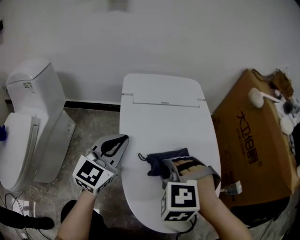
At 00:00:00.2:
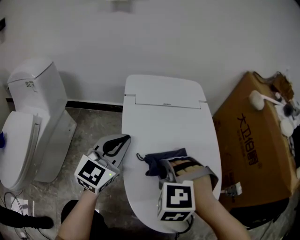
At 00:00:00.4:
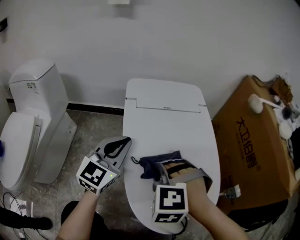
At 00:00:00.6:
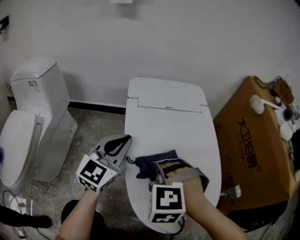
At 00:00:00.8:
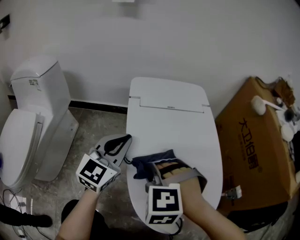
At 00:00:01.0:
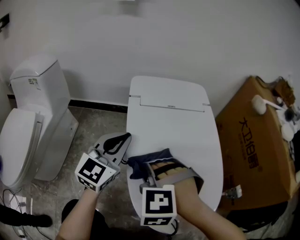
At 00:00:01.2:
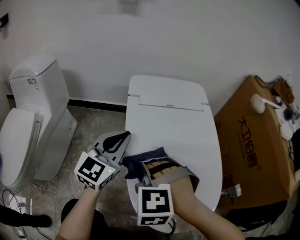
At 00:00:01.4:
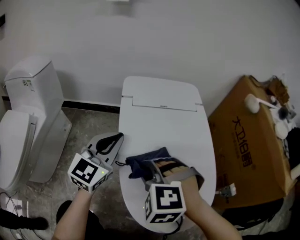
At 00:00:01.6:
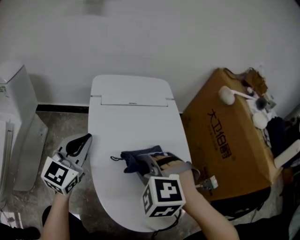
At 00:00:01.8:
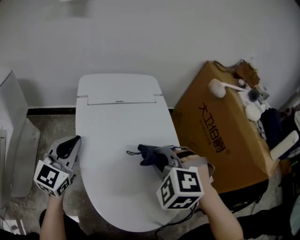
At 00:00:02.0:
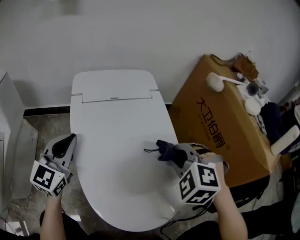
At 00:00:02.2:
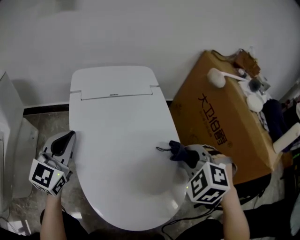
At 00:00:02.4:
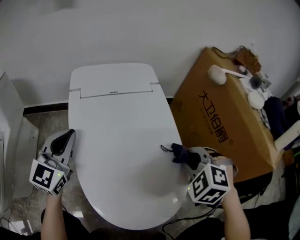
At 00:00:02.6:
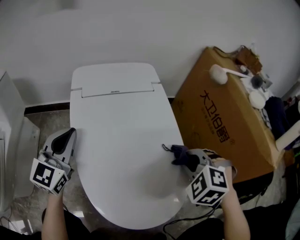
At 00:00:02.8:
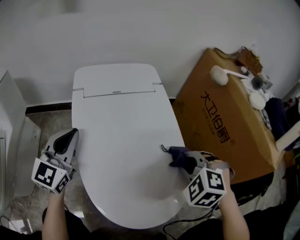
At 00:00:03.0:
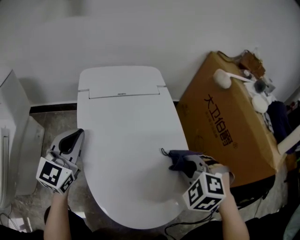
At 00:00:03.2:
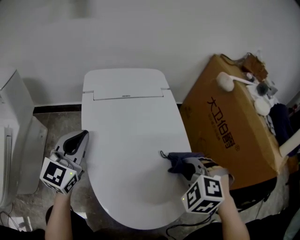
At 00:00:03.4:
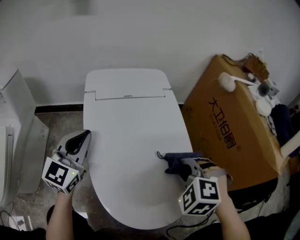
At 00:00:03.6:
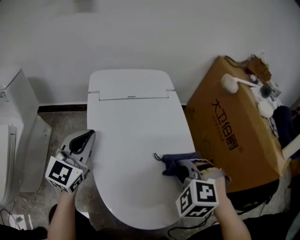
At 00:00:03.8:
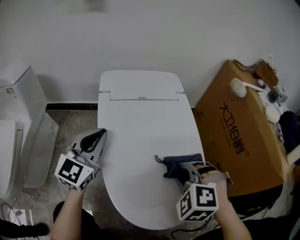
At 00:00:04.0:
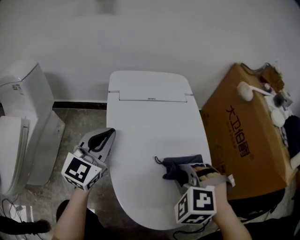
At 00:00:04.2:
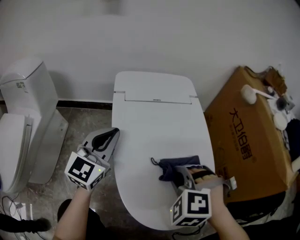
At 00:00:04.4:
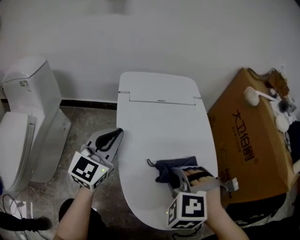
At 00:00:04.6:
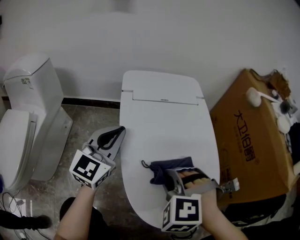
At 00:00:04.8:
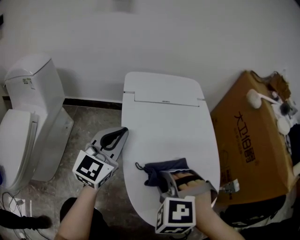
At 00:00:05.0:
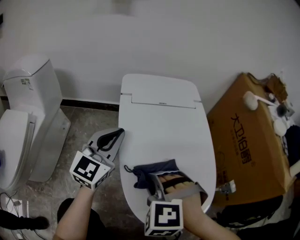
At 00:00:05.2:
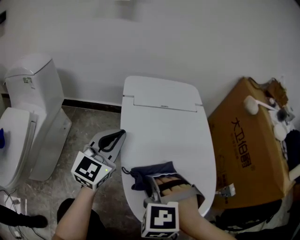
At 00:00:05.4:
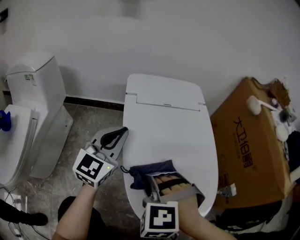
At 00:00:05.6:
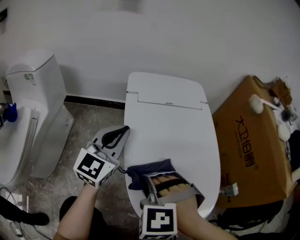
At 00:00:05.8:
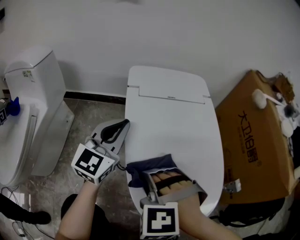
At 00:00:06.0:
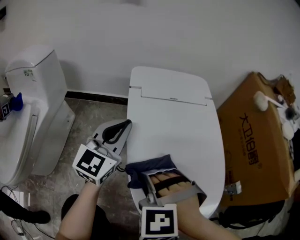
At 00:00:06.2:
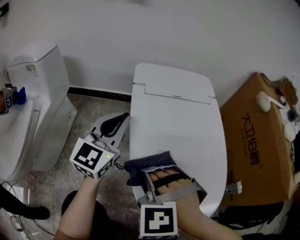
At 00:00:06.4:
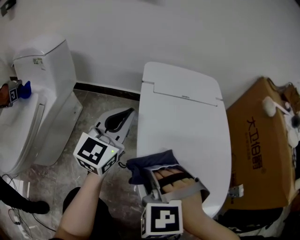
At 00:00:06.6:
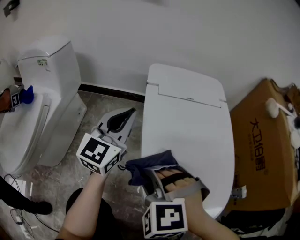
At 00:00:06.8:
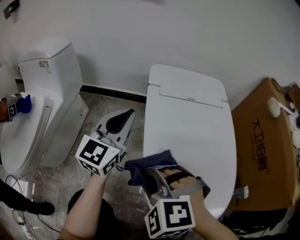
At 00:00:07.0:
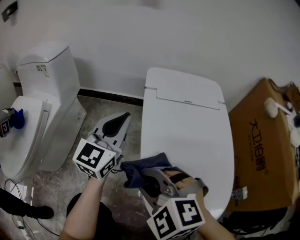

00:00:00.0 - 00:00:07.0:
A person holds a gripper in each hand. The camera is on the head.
00:00:00.0 - 00:00:01.4: The right gripper shifts approximately 5 cm to the left.
00:00:01.4 - 00:00:02.8: The right gripper shifts some 25 cm to the right, and swivels some 30 degrees.
00:00:02.8 - 00:00:04.2: The right gripper moves to the left, roughly 15 cm.
00:00:04.2 - 00:00:05.6: The right gripper shifts some 10 cm to the left.
00:00:05.6 - 00:00:07.0: The two grippers go about 5 cm to the left. The right gripper swivels about 30 degrees.

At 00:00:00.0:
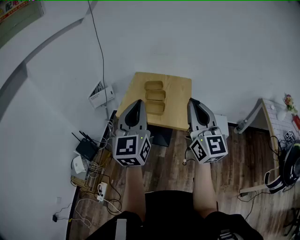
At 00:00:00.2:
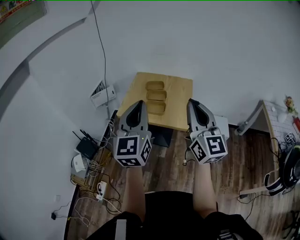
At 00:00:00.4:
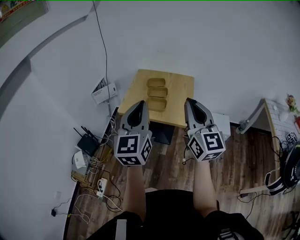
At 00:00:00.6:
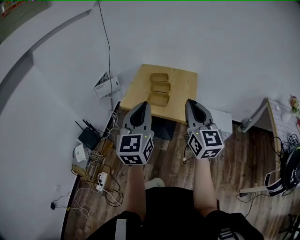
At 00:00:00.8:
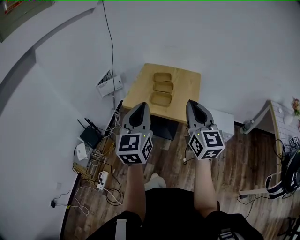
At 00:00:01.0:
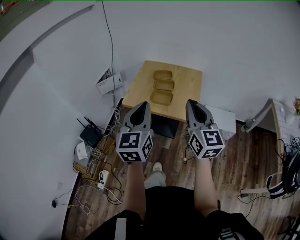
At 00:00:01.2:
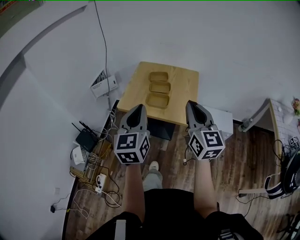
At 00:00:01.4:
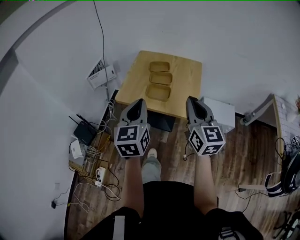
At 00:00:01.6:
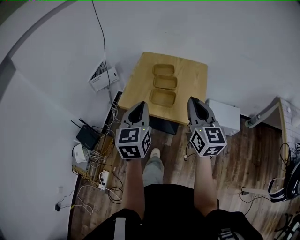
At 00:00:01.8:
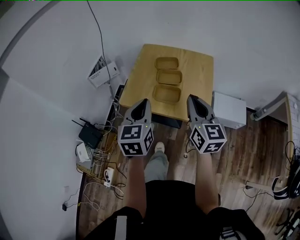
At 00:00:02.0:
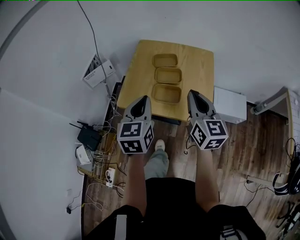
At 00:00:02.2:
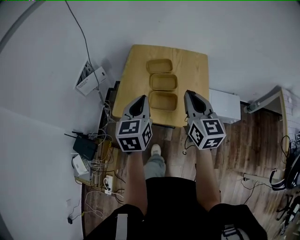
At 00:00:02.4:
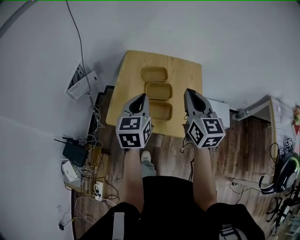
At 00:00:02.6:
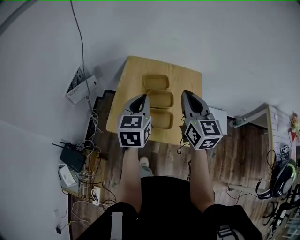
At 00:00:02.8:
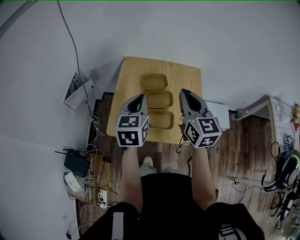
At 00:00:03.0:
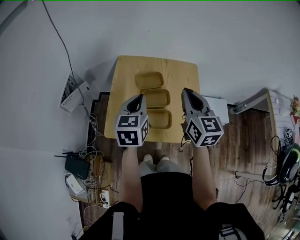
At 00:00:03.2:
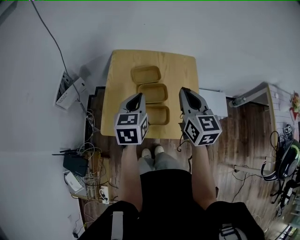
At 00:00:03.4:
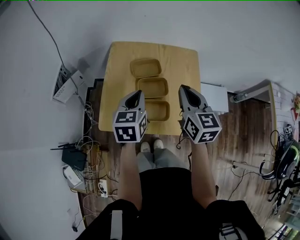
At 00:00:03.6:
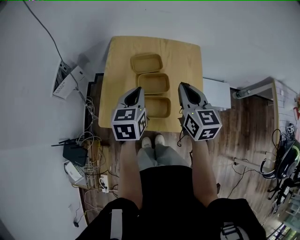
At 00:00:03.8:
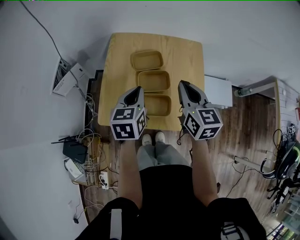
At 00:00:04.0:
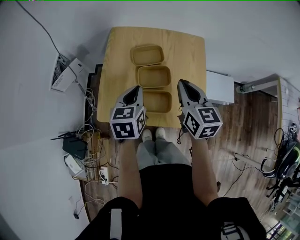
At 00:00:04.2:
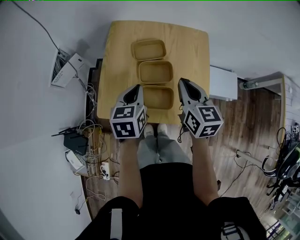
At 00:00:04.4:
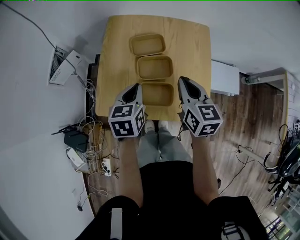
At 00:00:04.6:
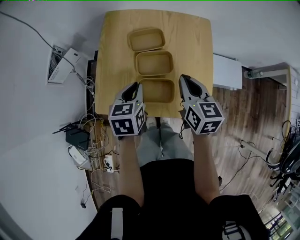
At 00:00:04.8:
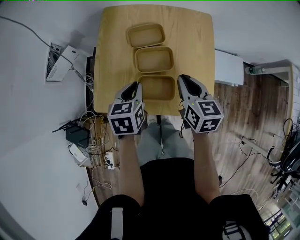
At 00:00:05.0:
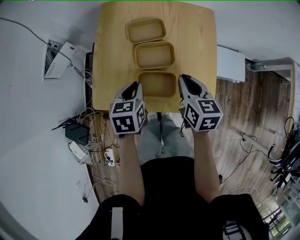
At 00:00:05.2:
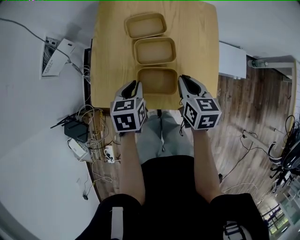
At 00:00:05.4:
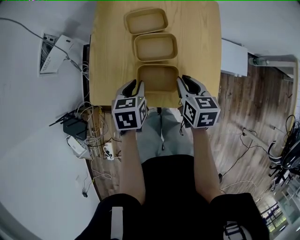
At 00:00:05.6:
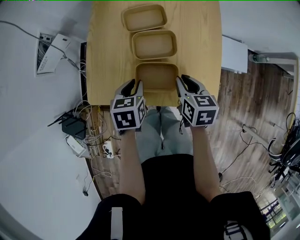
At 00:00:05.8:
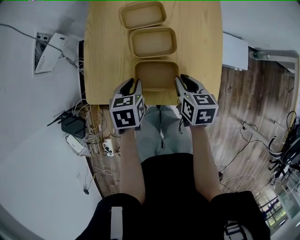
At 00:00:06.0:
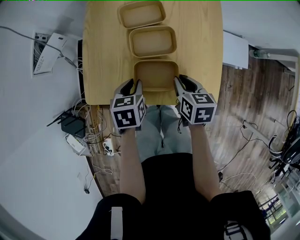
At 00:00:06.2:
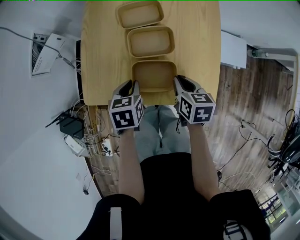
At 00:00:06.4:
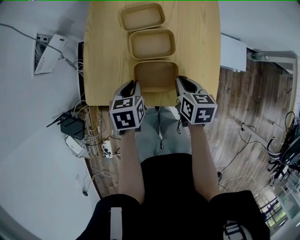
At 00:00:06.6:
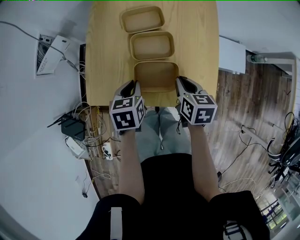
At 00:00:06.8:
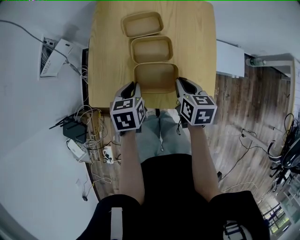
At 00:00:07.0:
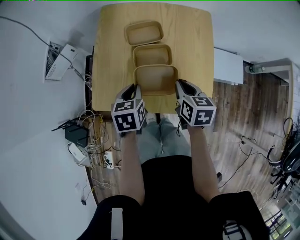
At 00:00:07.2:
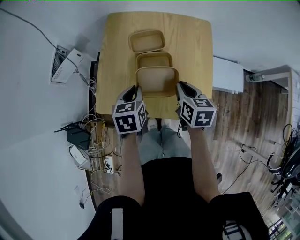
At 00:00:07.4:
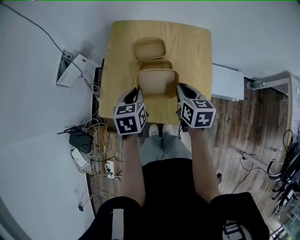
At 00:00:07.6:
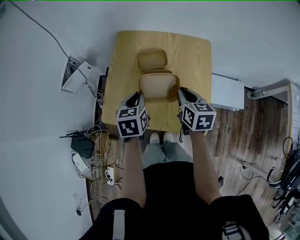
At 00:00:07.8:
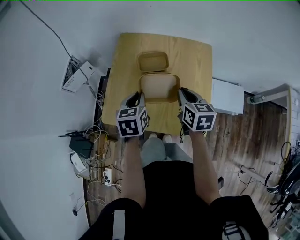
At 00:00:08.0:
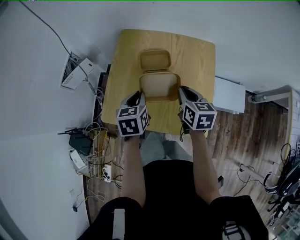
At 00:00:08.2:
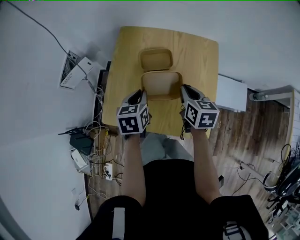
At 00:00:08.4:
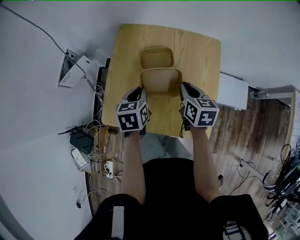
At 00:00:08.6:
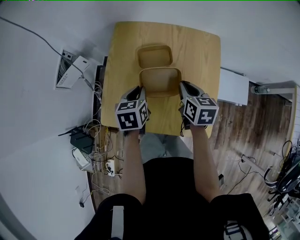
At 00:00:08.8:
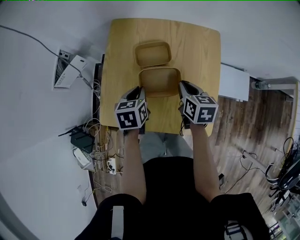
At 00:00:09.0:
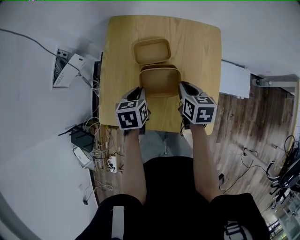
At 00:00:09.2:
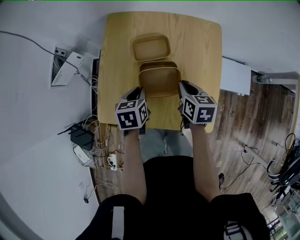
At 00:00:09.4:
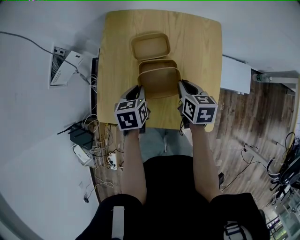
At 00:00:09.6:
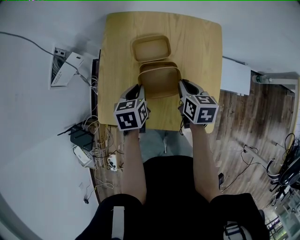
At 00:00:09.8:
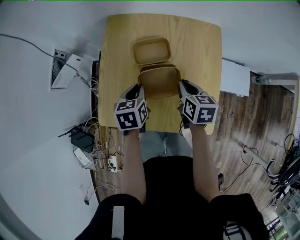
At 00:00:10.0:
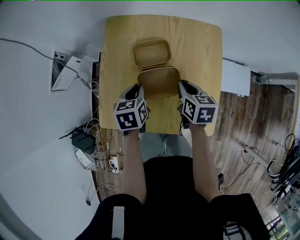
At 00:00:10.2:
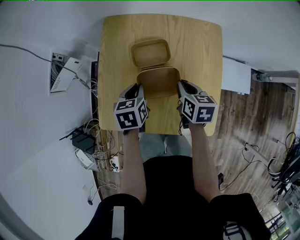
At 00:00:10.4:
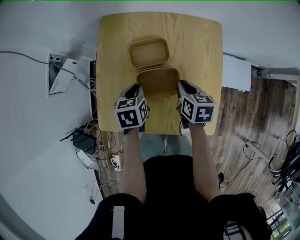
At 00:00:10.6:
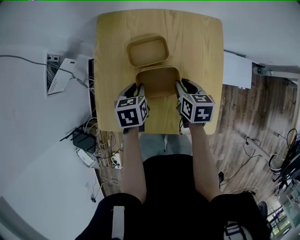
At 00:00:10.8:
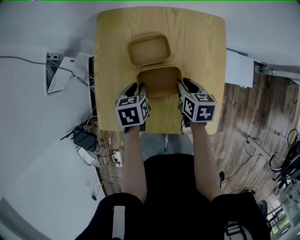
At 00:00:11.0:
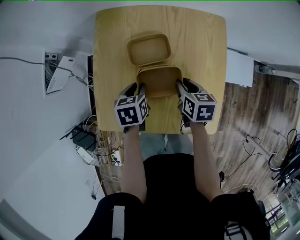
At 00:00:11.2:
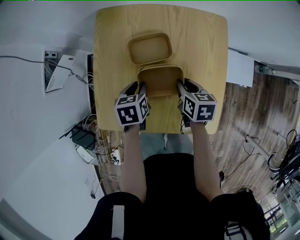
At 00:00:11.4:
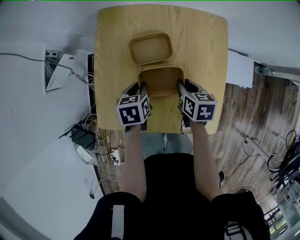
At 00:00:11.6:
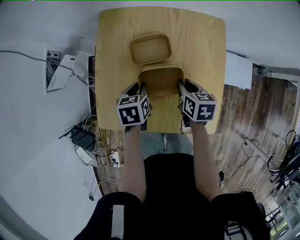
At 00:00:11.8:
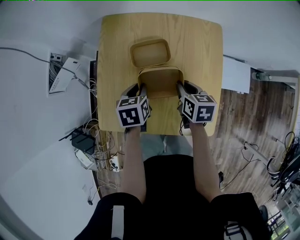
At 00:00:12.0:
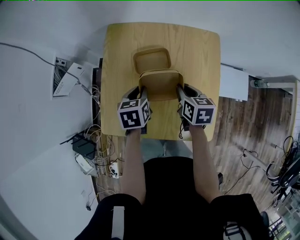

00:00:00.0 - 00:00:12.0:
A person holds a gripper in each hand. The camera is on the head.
00:00:00.0 - 00:00:01.6: The two grippers go some 20 cm downward and forward. The left gripper turns by about 20 degrees.
00:00:01.6 - 00:00:03.0: Both grippers travel together forward, roughly 25 cm.
00:00:03.0 - 00:00:04.4: The grippers both shift downward by about 15 cm.
00:00:04.4 - 00:00:06.0: The grippers both shift downward by some 15 cm. The right gripper swivels about 30 degrees; the left gripper opens.
00:00:06.0 - 00:00:07.6: The left gripper travels upward by some 15 cm, while the right gripper is displaced upward and forward by roughly 15 cm.
00:00:07.6 - 00:00:09.0: The grippers both shift downward by about 10 cm.
00:00:09.0 - 00:00:10.4: The grippers stay close to where they were, moving slightly.
00:00:10.4 - 00:00:12.0: The grippers move only a little.

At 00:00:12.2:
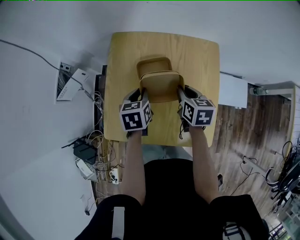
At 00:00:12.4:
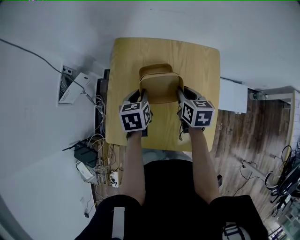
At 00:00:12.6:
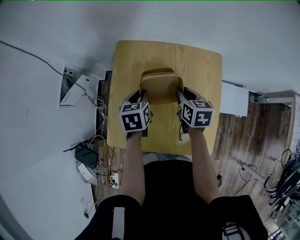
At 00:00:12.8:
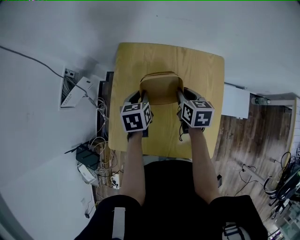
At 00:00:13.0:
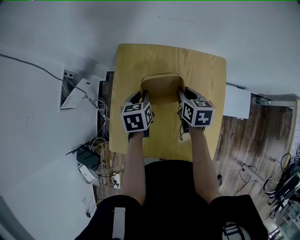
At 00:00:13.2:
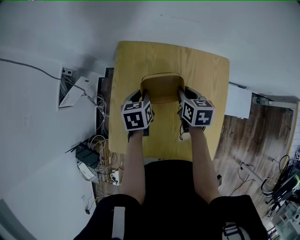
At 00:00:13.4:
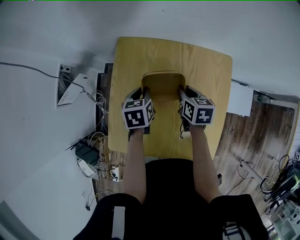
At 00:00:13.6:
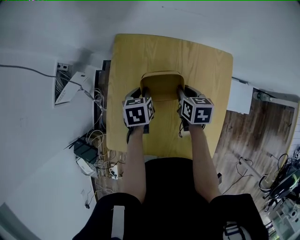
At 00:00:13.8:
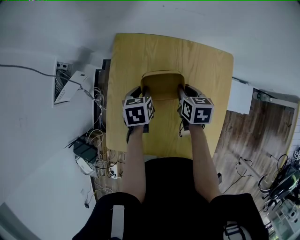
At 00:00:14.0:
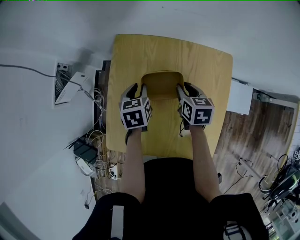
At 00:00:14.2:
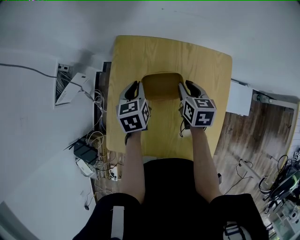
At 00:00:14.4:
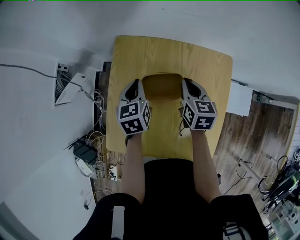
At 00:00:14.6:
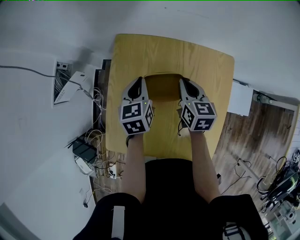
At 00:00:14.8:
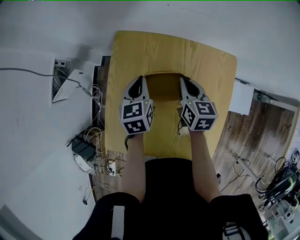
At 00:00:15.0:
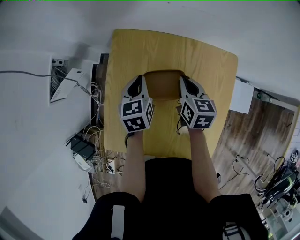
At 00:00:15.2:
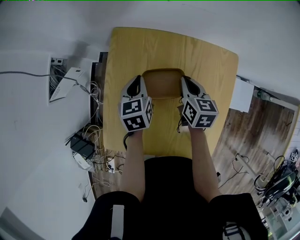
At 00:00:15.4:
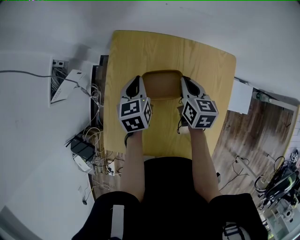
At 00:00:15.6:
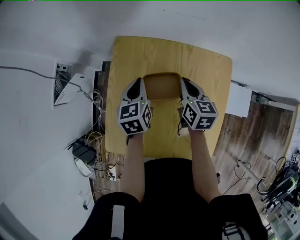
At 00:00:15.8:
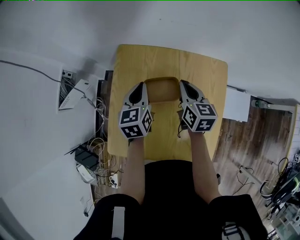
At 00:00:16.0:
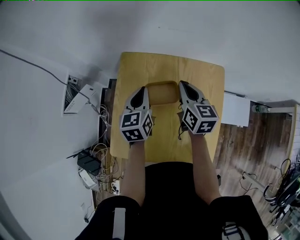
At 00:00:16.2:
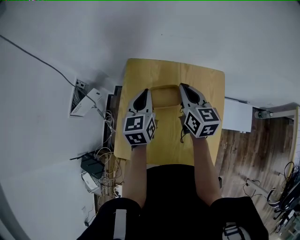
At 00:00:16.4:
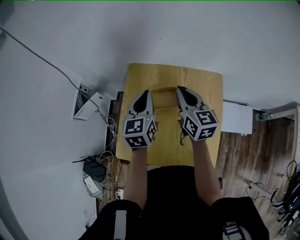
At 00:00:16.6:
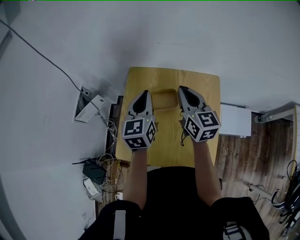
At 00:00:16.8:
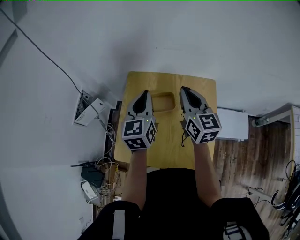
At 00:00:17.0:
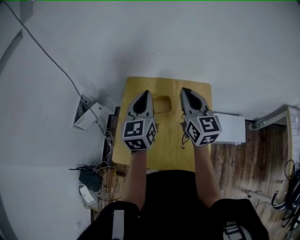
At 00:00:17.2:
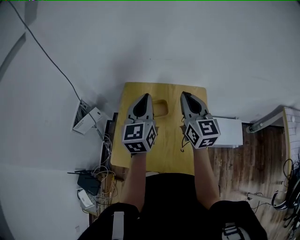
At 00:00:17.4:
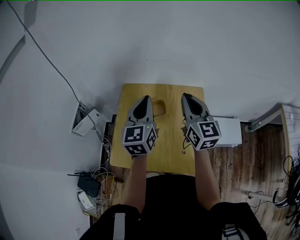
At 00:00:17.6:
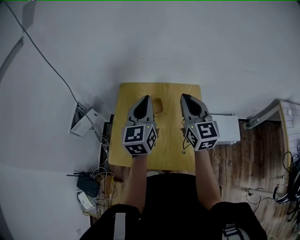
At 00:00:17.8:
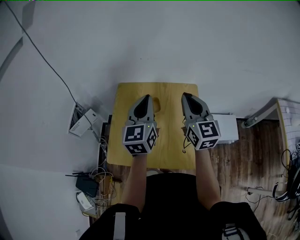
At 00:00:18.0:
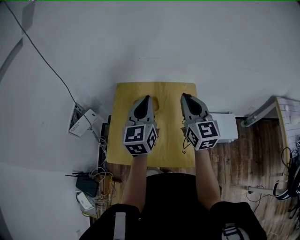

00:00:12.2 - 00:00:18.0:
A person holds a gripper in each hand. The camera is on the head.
00:00:12.2 - 00:00:13.6: The grippers both shift forward and downward by some 10 cm.
00:00:13.6 - 00:00:15.0: The left gripper ends up some 5 cm from where it was. Meanwhile the right gripper changes place by roughly 5 cm.
00:00:15.0 - 00:00:16.6: The two grippers go approximately 20 cm upward. The left gripper rotates approximately 30 degrees. The right gripper swivels some 30 degrees.
00:00:16.6 - 00:00:18.0: Both grippers move backward, to the right and upward, some 15 cm.
